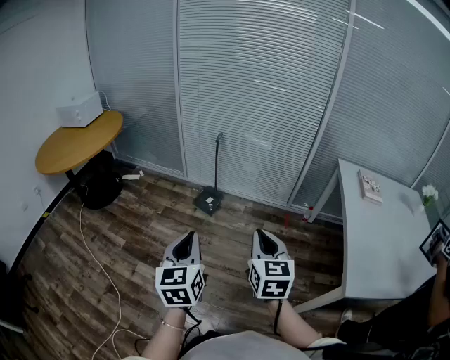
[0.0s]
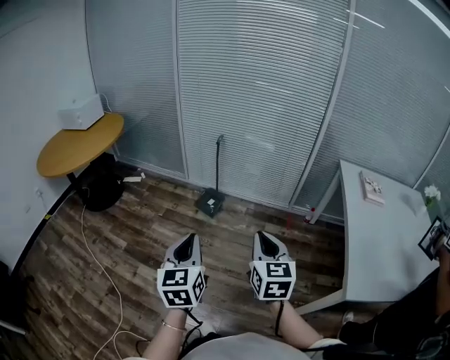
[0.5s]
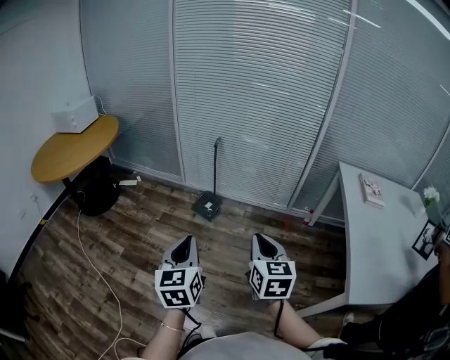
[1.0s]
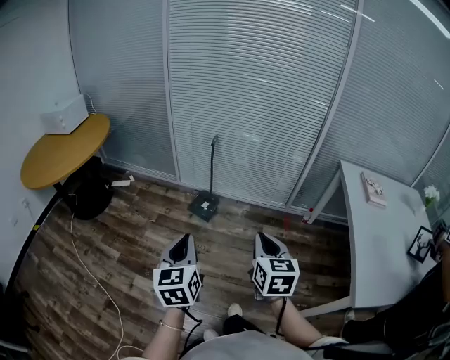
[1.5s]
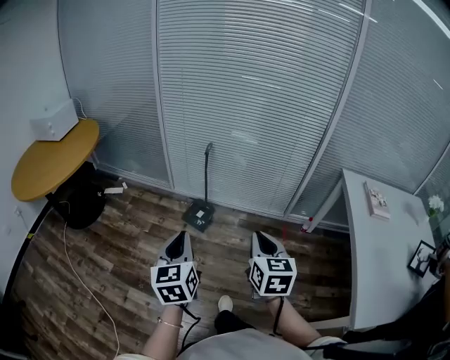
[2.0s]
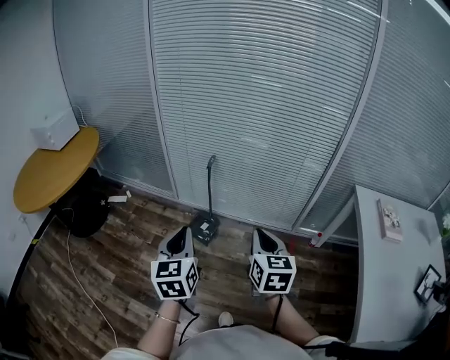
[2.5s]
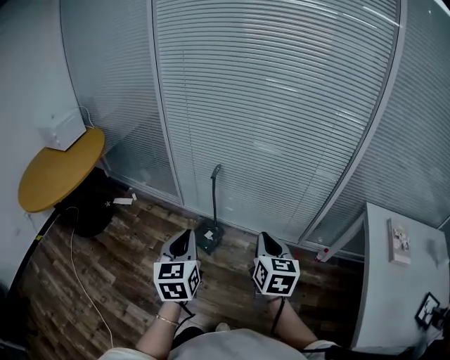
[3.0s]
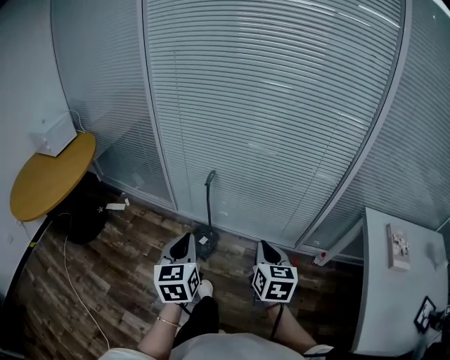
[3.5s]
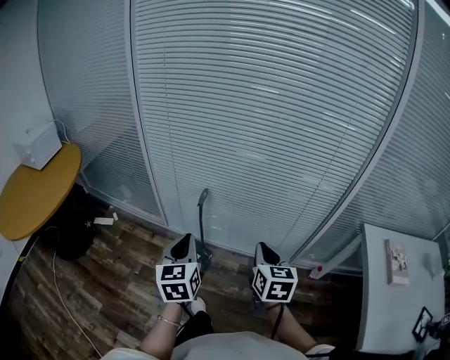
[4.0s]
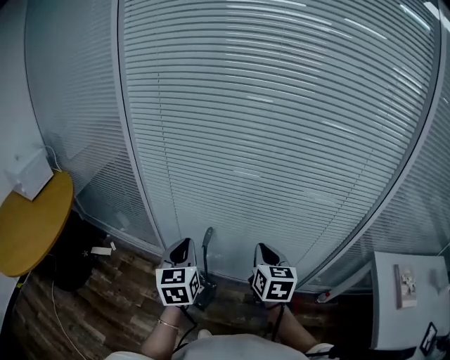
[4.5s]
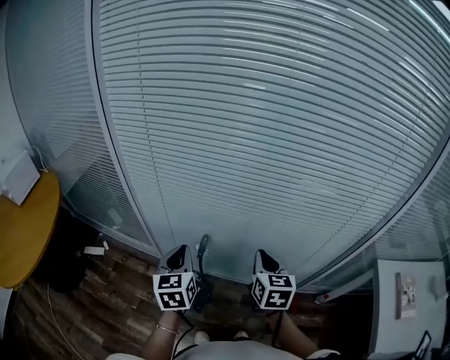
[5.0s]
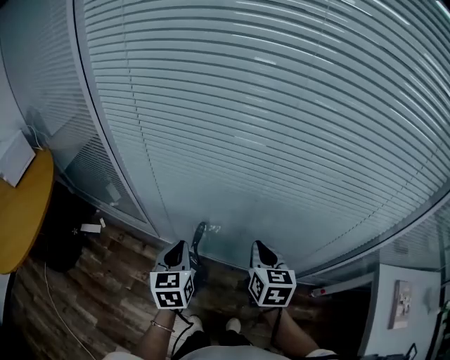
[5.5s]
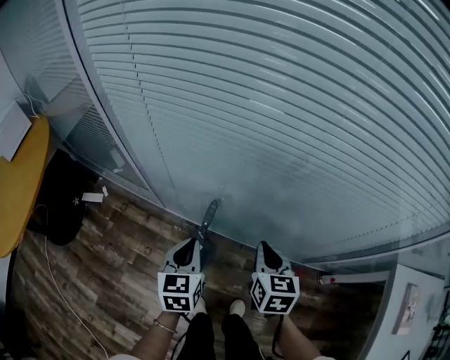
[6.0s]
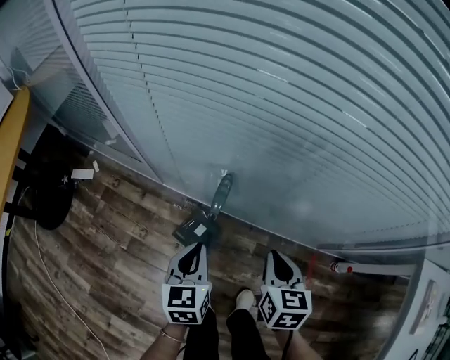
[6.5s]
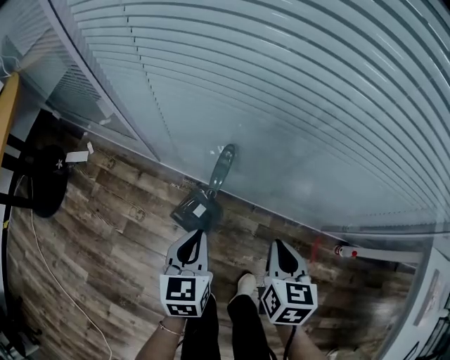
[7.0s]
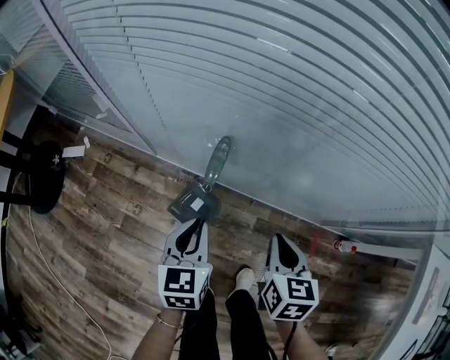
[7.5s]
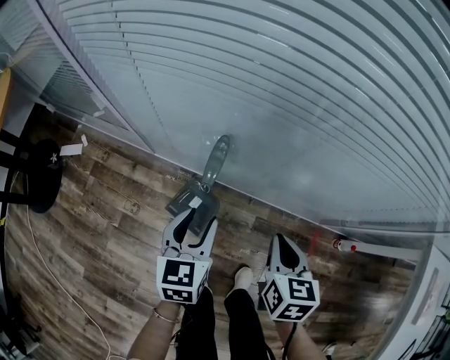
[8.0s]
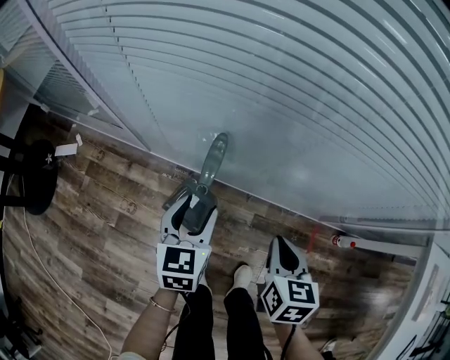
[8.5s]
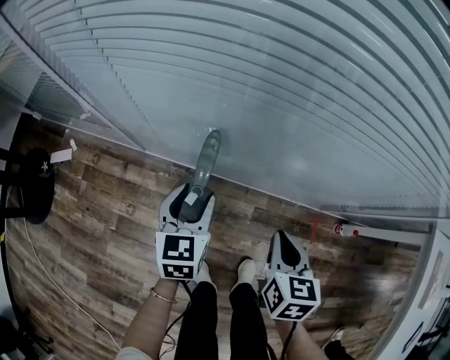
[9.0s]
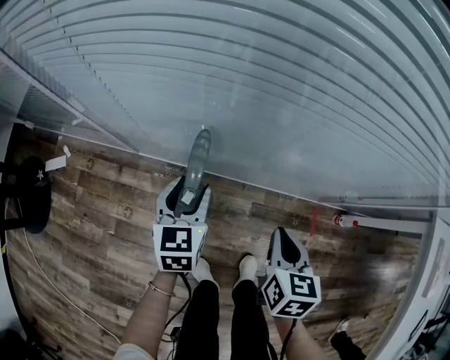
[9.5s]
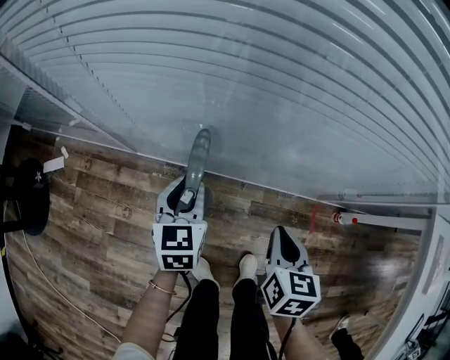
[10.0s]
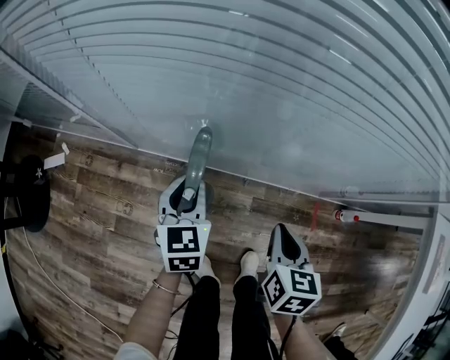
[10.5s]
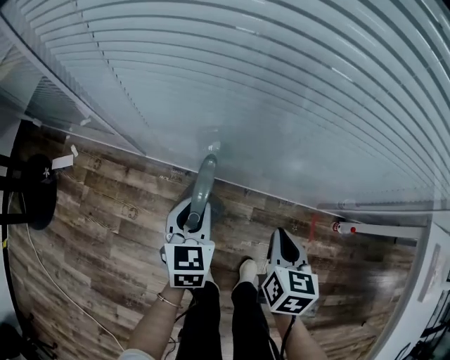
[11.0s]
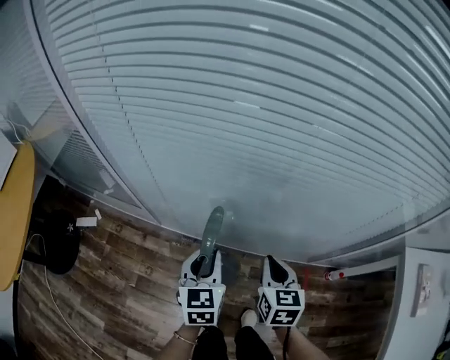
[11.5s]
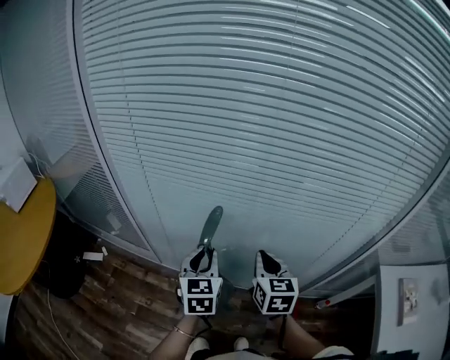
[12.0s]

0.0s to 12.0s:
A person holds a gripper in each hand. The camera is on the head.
0.0s to 2.0s: Both grippers travel together forward, roughly 20 cm.
2.0s to 4.0s: The grippers both shift forward by about 30 cm.
4.0s to 6.0s: Both grippers travel together forward and downward, some 25 cm.
6.0s to 8.0s: The two grippers go about 15 cm downward. The left gripper opens.
8.0s to 10.0s: The left gripper goes roughly 10 cm forward.
10.0s to 12.0s: Both grippers travel together upward, approximately 25 cm. The right gripper rotates about 30 degrees.

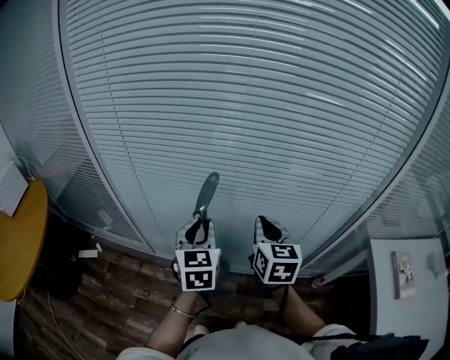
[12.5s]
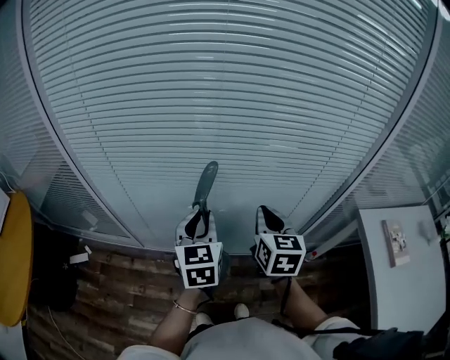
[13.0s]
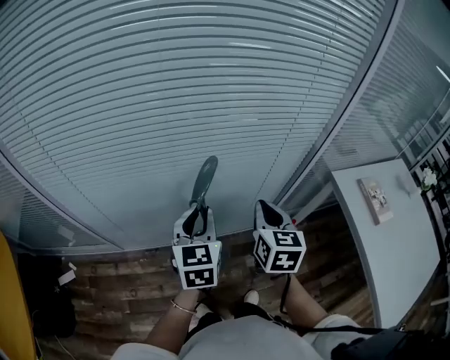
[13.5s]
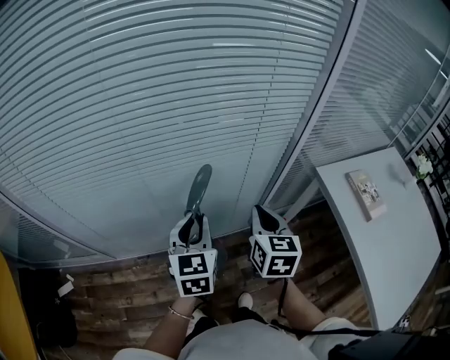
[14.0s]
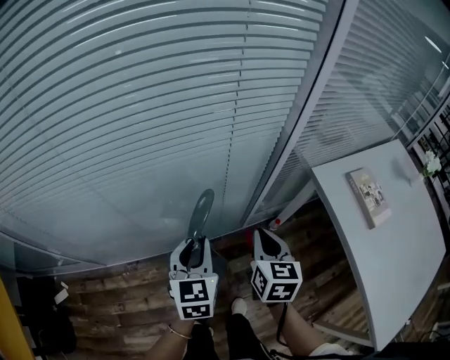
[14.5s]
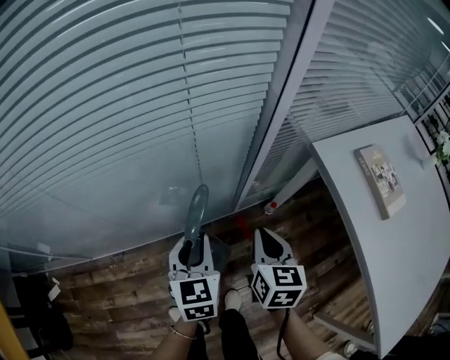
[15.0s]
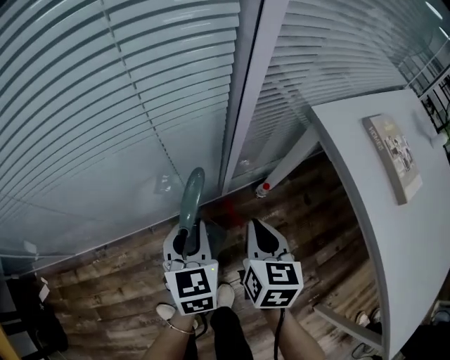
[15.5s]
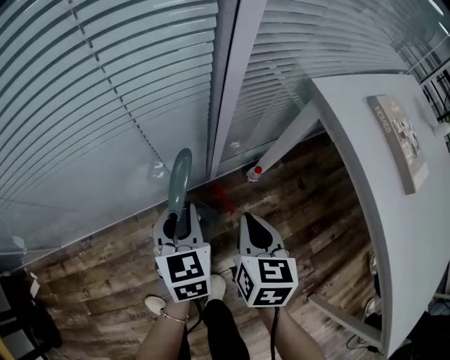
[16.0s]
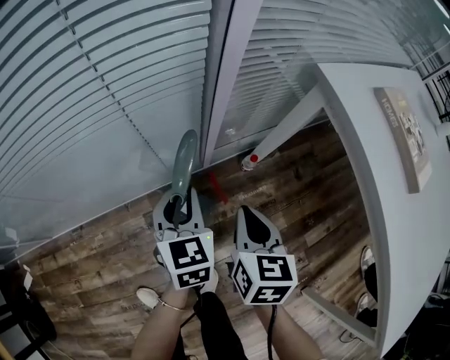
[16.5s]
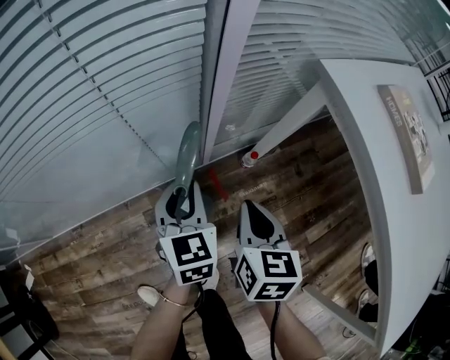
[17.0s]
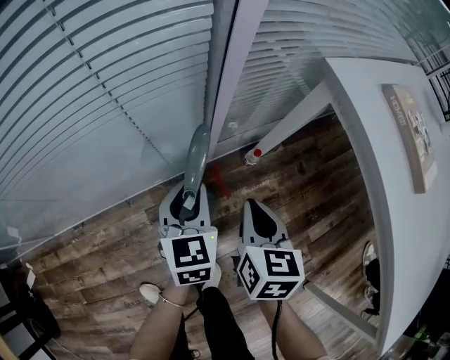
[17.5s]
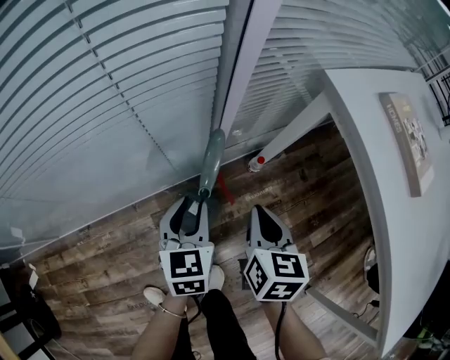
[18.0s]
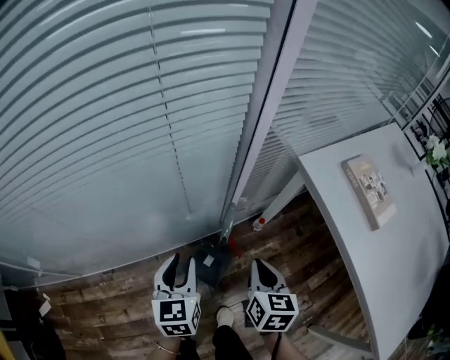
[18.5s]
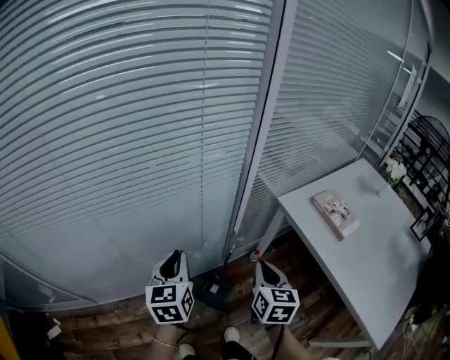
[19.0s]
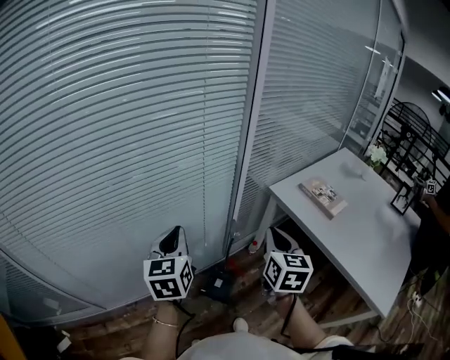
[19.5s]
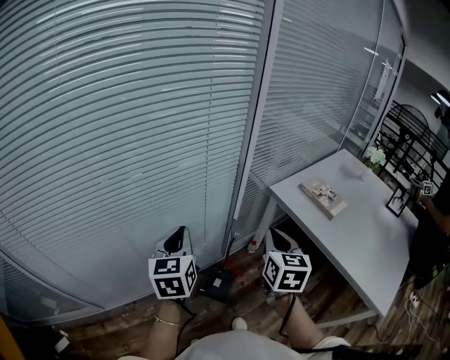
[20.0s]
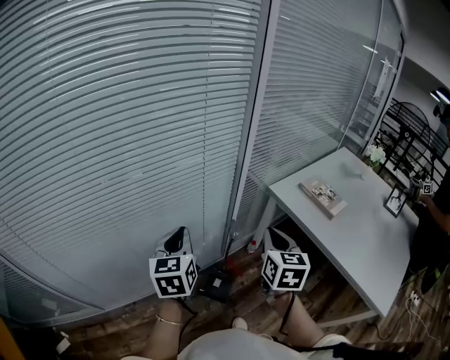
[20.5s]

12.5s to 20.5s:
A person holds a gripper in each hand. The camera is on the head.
12.5s to 14.5s: The right gripper ends up some 30 cm from where it was, and rotates roughly 30 degrees. Meanwhile the left gripper shifts by approximately 30 cm, and changes its angle by about 30 degrees.
14.5s to 16.5s: Both grippers move downward and to the right, approximately 30 cm.
16.5s to 18.5s: The left gripper travels upward, to the left and backward by roughly 20 cm. The right gripper heads upward, covering roughly 10 cm.
18.5s to 20.5s: The grippers both shift upward by roughly 25 cm. The left gripper closes up. Meanwhile the right gripper swivels about 20 degrees.

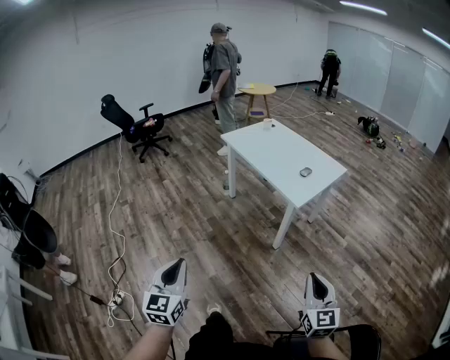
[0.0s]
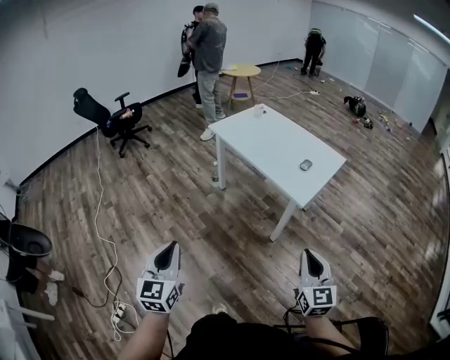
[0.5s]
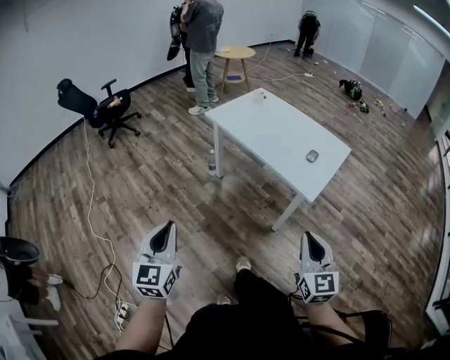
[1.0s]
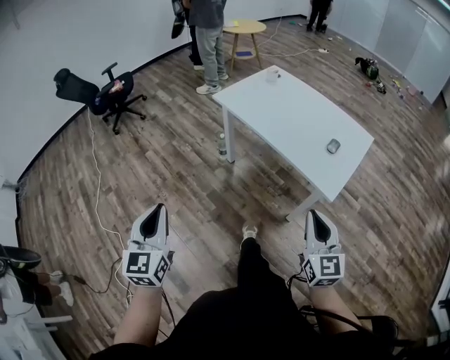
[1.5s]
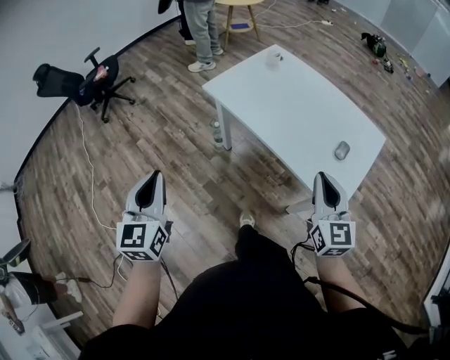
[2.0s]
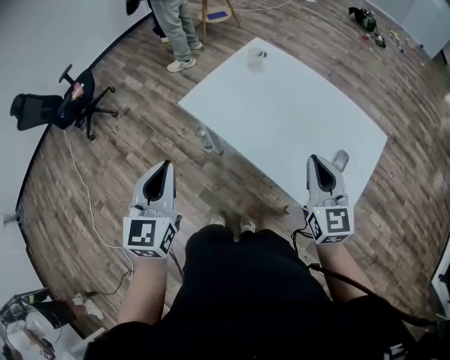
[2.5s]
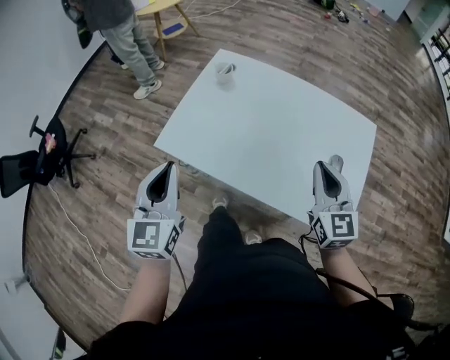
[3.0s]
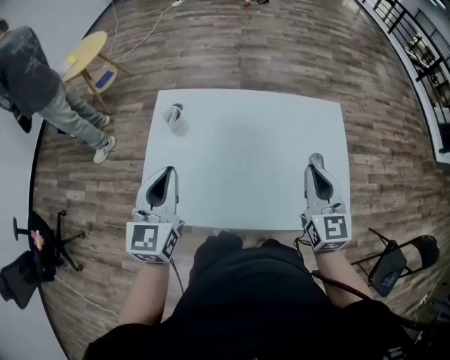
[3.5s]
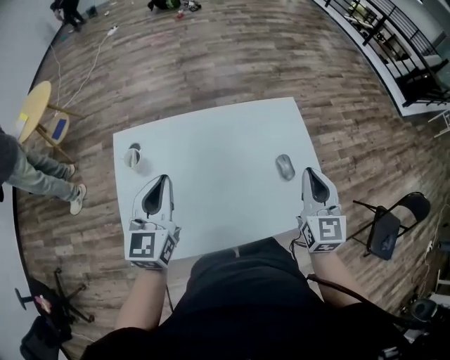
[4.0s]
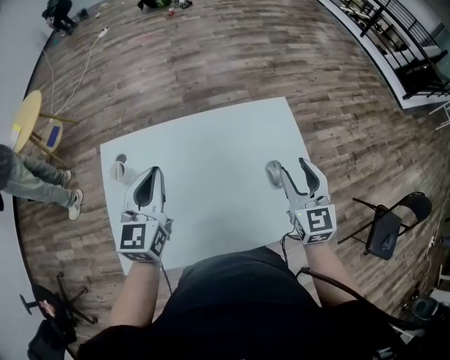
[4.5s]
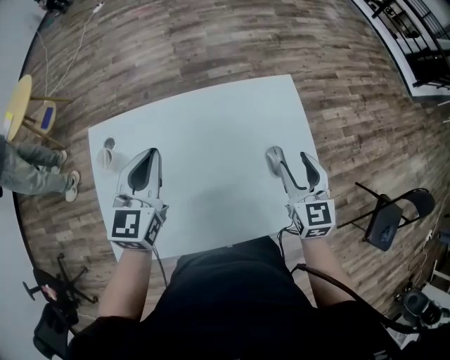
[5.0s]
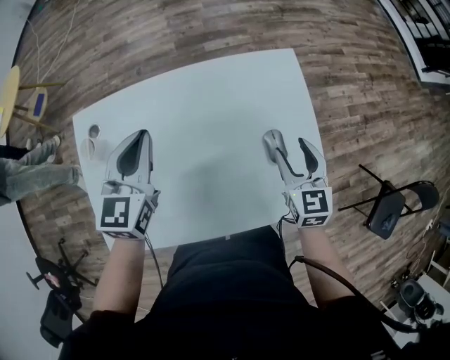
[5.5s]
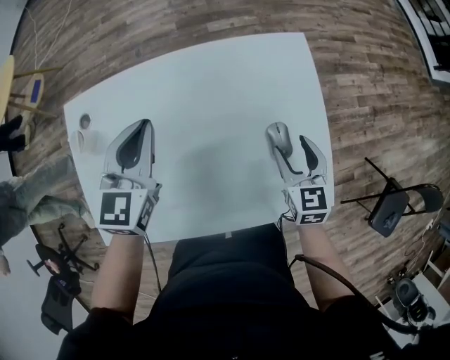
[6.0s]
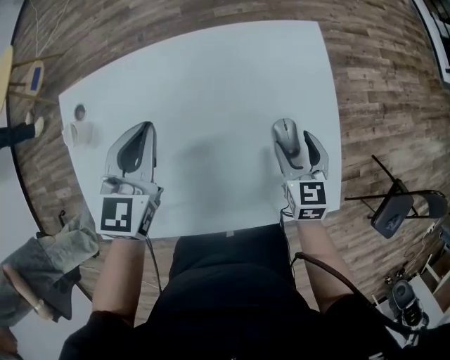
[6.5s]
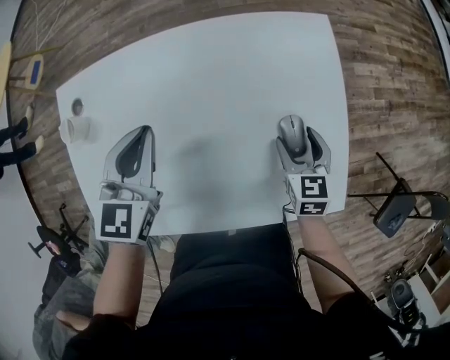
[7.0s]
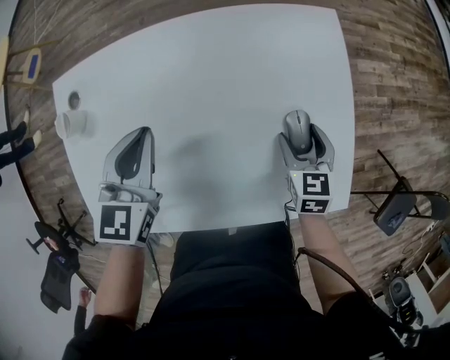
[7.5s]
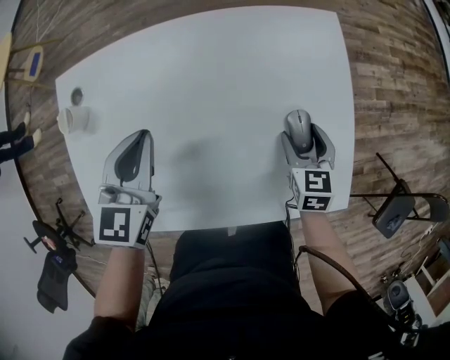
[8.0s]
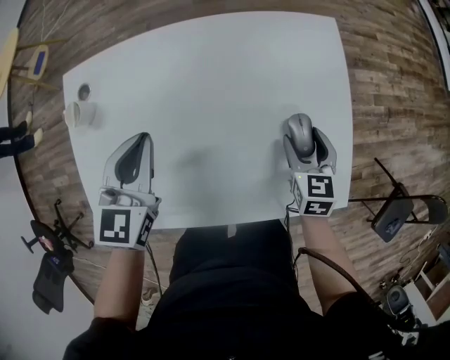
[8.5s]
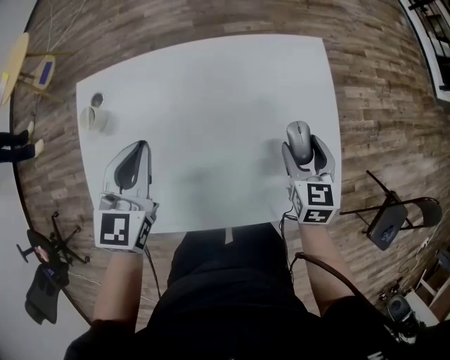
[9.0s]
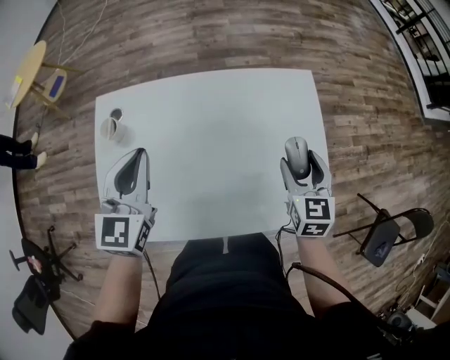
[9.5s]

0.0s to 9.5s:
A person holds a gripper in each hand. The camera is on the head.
0.0s to 2.0s: Both grippers are carried forward, about 50 cm.
2.0s to 4.0s: The right gripper ends up approximately 15 cm from where it was, and rotates approximately 60 degrees. Meanwhile the left gripper ends up some 50 cm from where it was, and rotates roughly 60 degrees.
4.0s to 5.5s: The left gripper heads forward and to the right, covering about 10 cm. The right gripper travels downward by roughly 15 cm, and opens its fingers.
5.5s to 7.5s: The right gripper travels downward by roughly 10 cm. The left gripper goes approximately 5 cm downward.
7.5s to 9.5s: The left gripper shifts approximately 10 cm upward and to the left; the right gripper goes some 15 cm upward.
